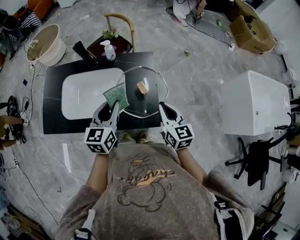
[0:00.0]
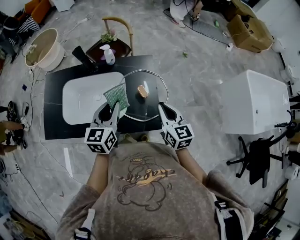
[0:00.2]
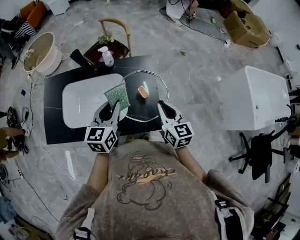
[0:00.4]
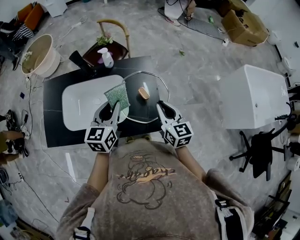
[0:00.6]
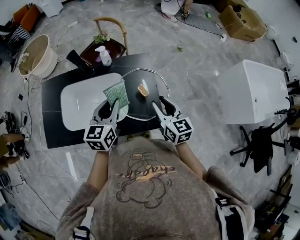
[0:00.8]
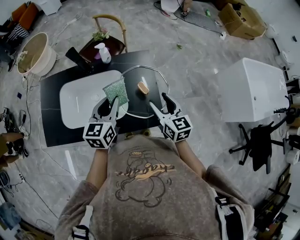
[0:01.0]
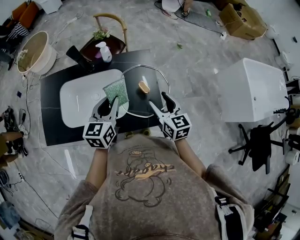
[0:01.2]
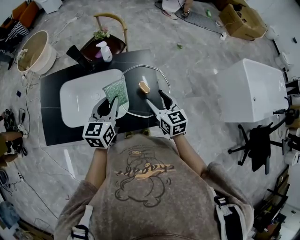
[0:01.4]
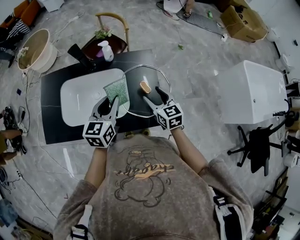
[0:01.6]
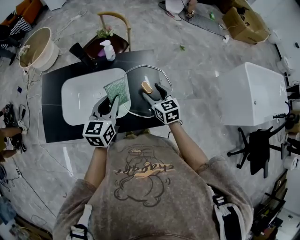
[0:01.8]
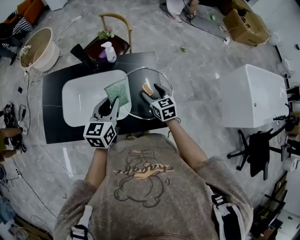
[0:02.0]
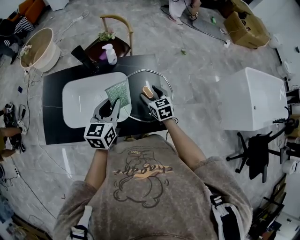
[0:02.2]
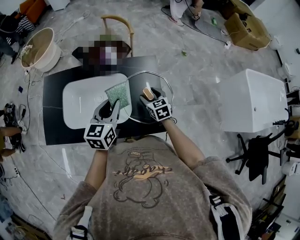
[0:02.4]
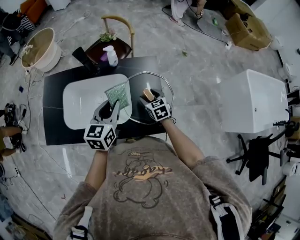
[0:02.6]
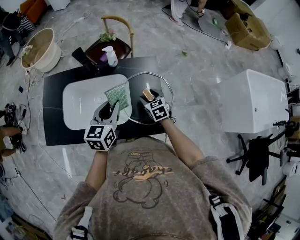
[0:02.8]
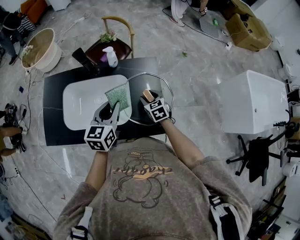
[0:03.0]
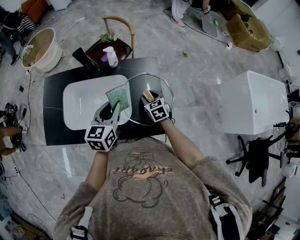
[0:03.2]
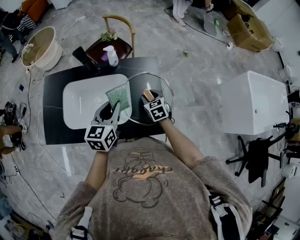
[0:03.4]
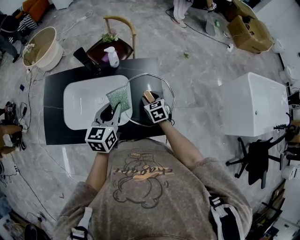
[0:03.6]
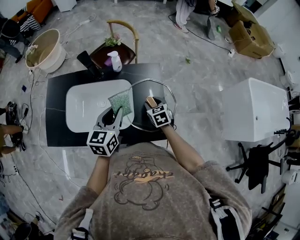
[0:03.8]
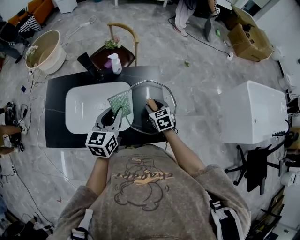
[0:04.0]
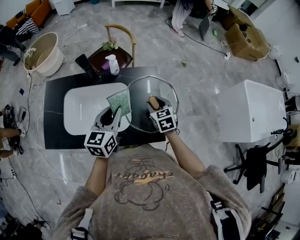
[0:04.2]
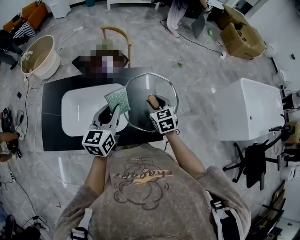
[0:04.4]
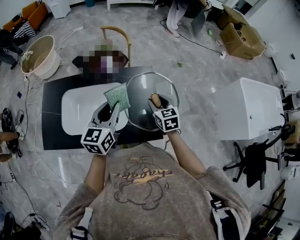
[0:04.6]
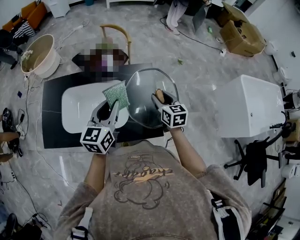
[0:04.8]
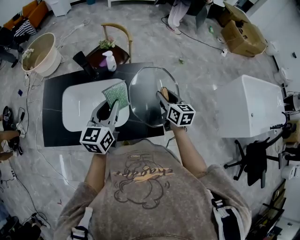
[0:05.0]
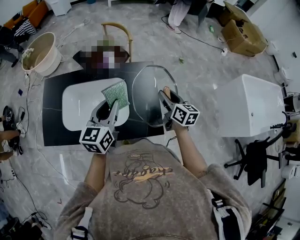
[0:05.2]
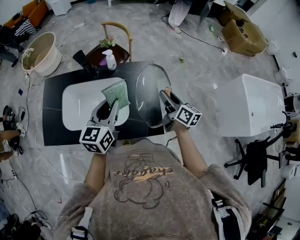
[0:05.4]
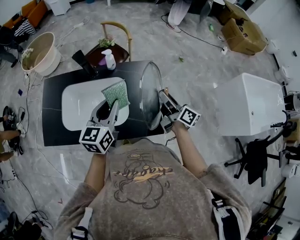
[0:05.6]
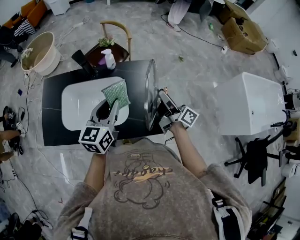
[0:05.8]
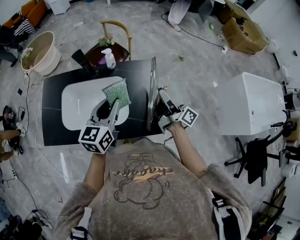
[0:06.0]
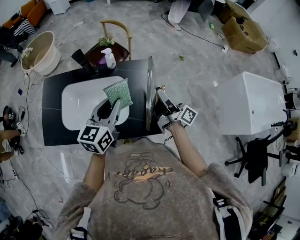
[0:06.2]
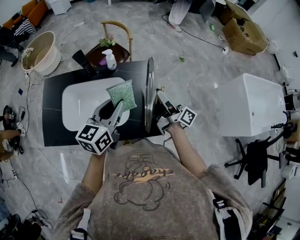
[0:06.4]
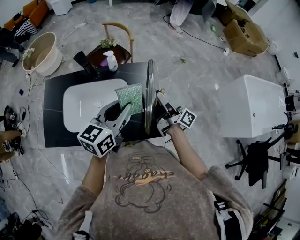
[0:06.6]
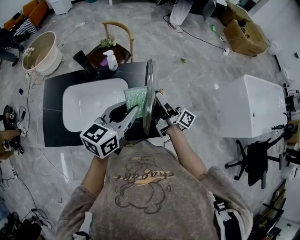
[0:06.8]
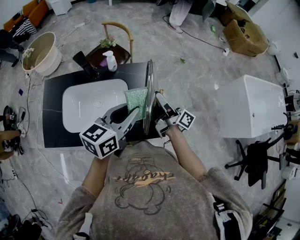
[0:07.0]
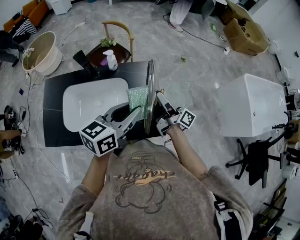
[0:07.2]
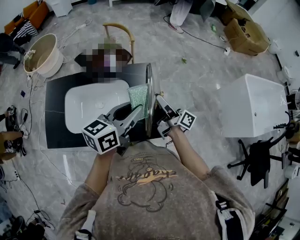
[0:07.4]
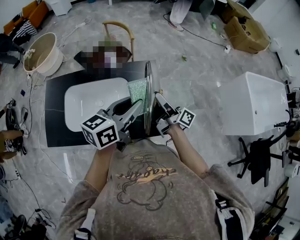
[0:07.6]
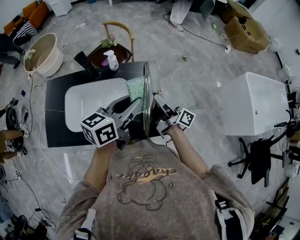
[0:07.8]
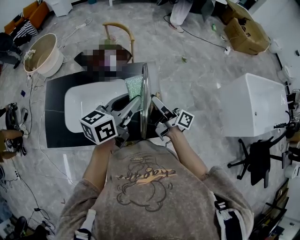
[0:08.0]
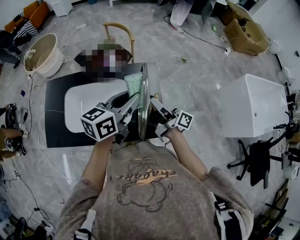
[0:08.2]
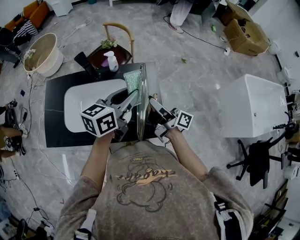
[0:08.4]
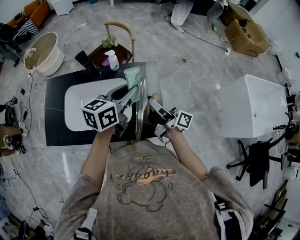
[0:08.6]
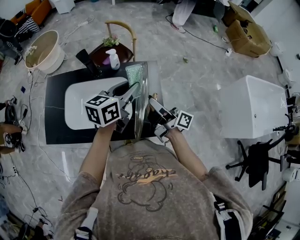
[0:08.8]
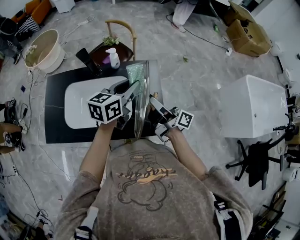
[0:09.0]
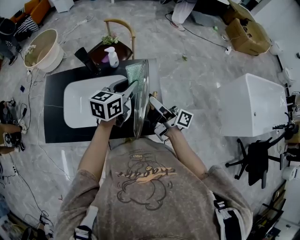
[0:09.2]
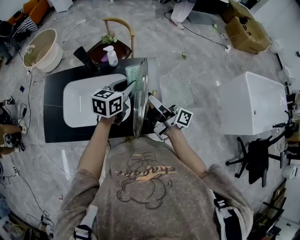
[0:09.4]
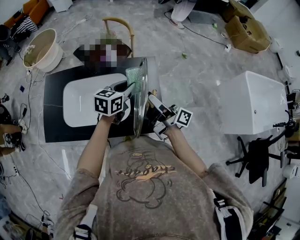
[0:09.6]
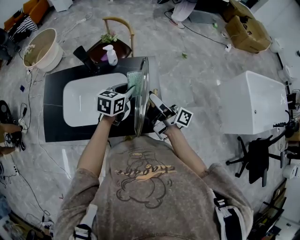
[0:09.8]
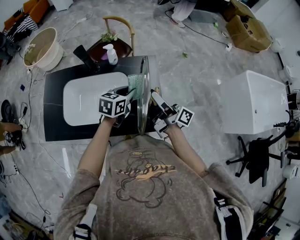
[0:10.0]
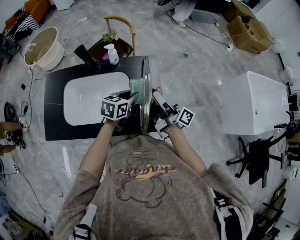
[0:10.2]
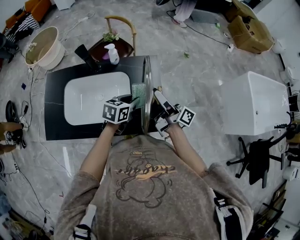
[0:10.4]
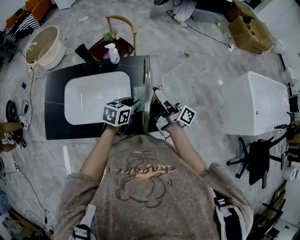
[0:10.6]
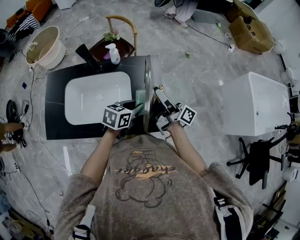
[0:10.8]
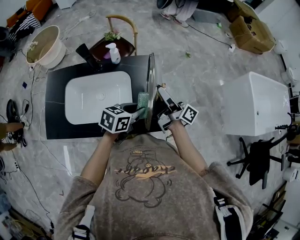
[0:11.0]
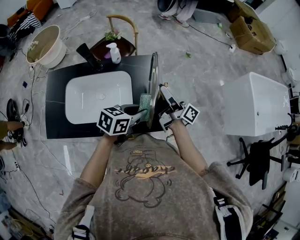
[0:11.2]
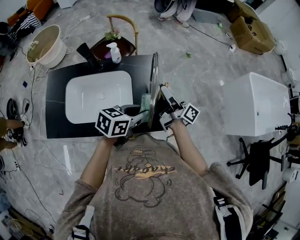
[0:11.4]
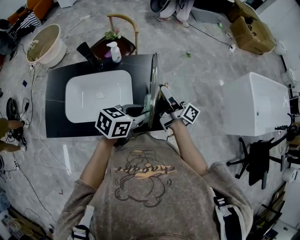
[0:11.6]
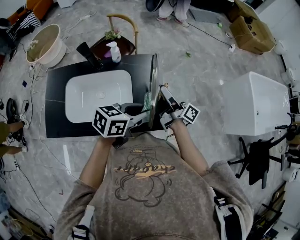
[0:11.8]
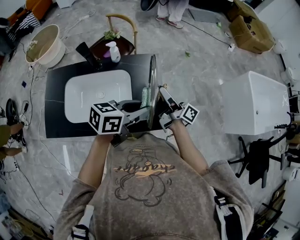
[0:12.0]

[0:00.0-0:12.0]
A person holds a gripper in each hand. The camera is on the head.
0:00.0 to 0:01.6: The right gripper shifts some 10 cm to the left, forward and downward, and opens.
0:01.6 to 0:03.0: The right gripper travels downward and forward by about 10 cm.
0:03.0 to 0:04.4: The right gripper is displaced upward by approximately 10 cm.
0:04.4 to 0:06.0: The right gripper is displaced upward by roughly 5 cm, and points its fingers about 50 degrees further upward.
0:06.0 to 0:07.6: The left gripper moves to the right, roughly 10 cm, and swivels roughly 30 degrees.
0:07.6 to 0:09.0: The right gripper changes place by roughly 5 cm, while the left gripper heads forward, covering roughly 5 cm.
0:09.0 to 0:10.4: The left gripper travels downward by roughly 15 cm, and swivels some 20 degrees.
0:10.4 to 0:12.0: The left gripper goes some 15 cm upward and backward, and rotates some 20 degrees.

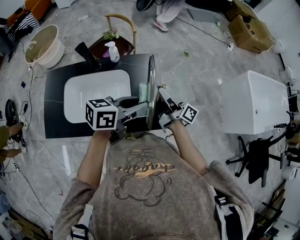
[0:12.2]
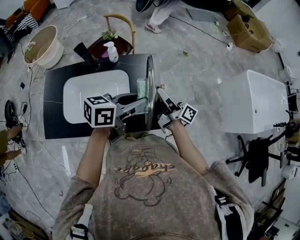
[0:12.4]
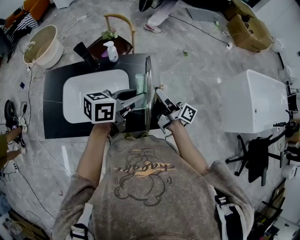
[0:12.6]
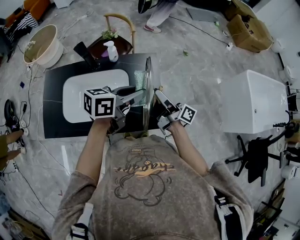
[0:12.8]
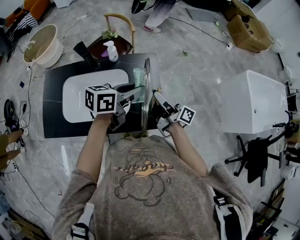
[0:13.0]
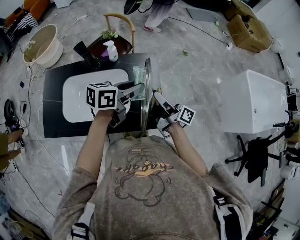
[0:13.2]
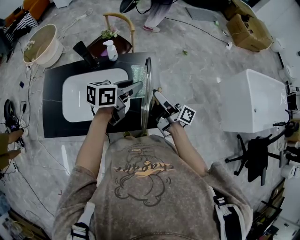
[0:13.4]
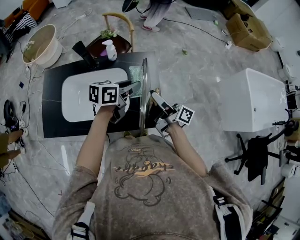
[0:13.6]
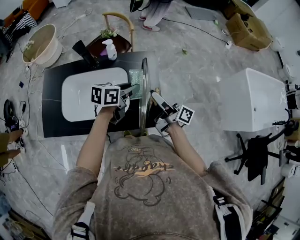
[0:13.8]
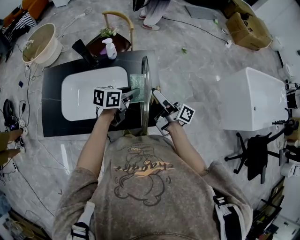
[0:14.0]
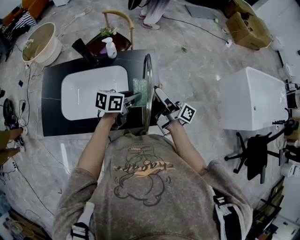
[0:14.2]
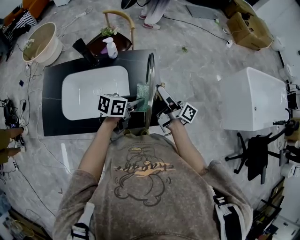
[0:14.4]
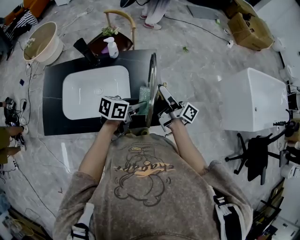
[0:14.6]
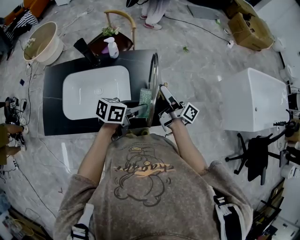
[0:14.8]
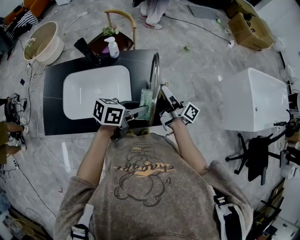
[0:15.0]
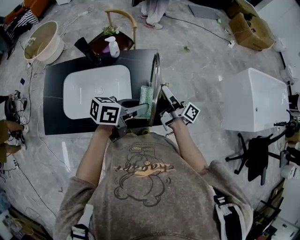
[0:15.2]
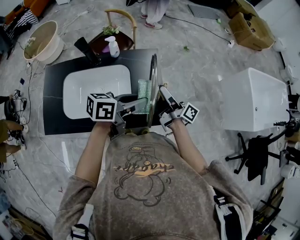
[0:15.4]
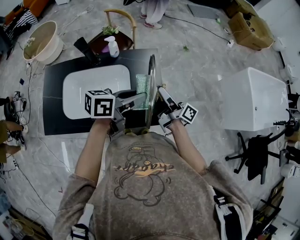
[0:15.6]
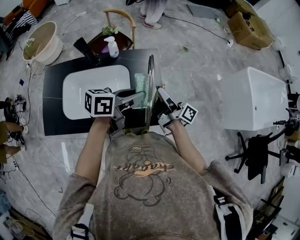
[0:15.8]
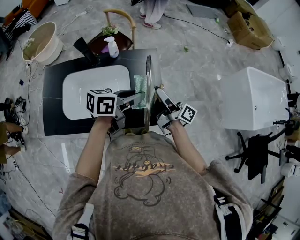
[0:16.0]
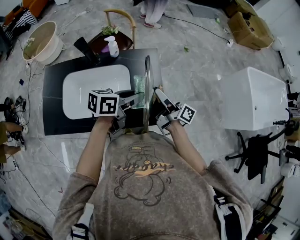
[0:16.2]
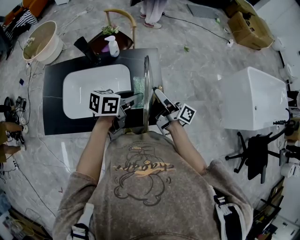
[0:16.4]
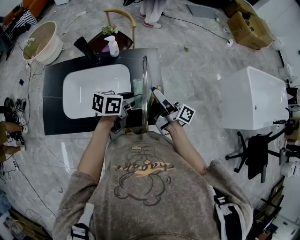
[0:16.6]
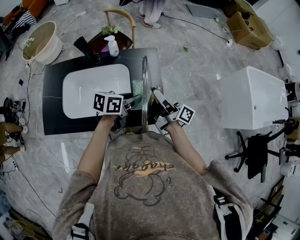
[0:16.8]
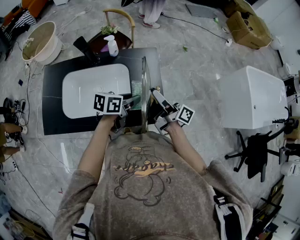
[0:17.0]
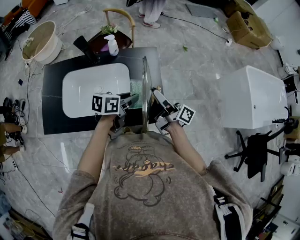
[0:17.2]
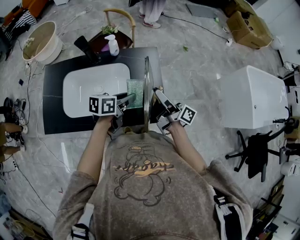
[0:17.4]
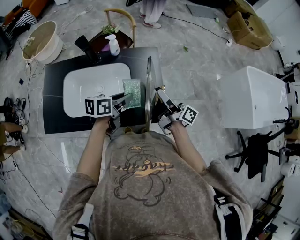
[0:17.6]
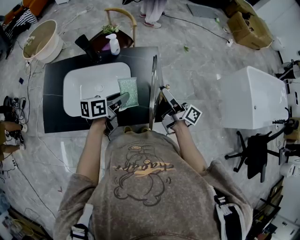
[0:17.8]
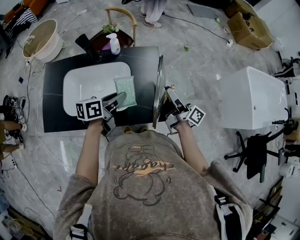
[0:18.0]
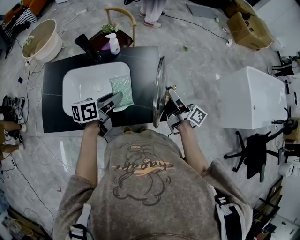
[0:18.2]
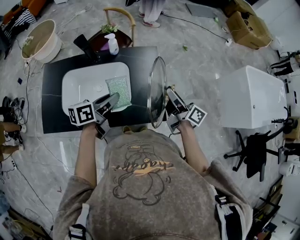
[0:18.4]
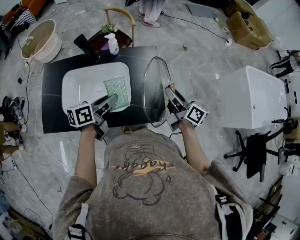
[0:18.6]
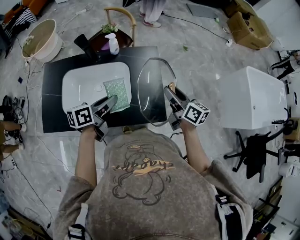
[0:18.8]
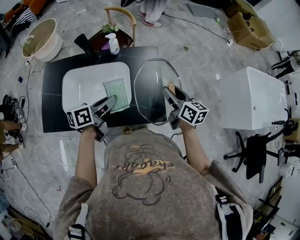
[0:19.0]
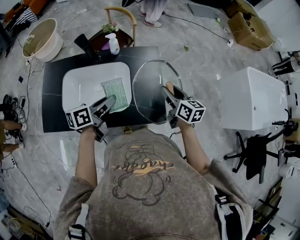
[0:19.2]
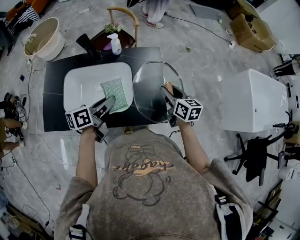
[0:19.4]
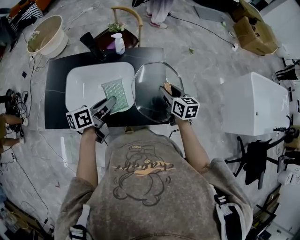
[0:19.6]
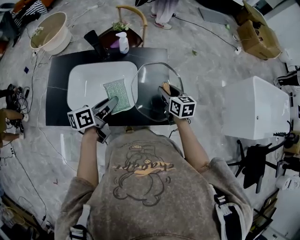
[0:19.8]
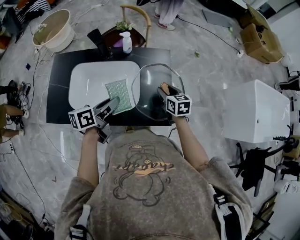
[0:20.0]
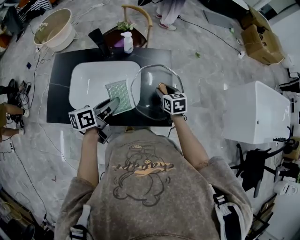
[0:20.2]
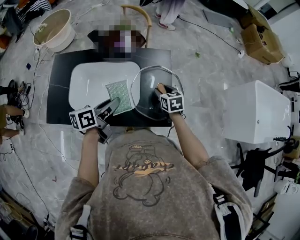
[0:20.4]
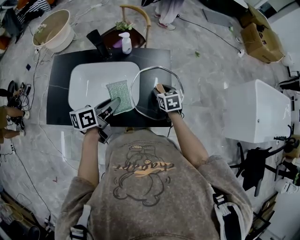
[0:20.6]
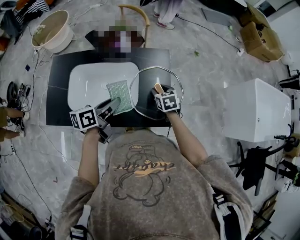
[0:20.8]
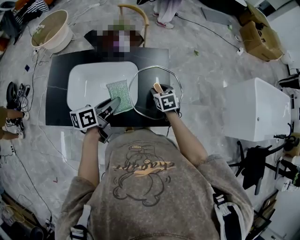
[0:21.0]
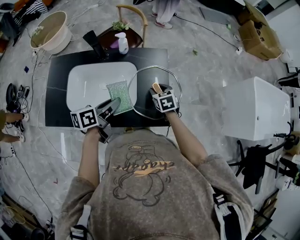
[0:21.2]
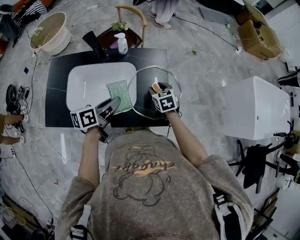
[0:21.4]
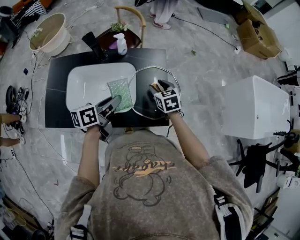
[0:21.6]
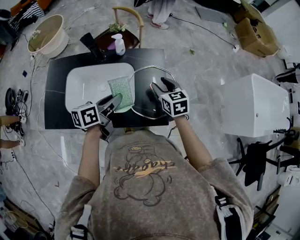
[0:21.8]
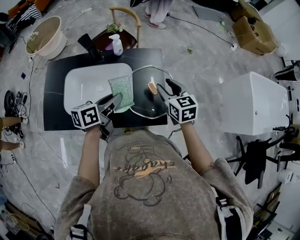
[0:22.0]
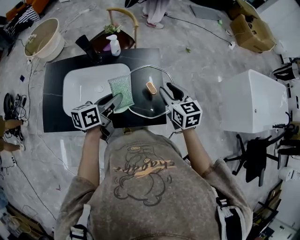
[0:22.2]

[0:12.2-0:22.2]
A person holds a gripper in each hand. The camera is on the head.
0:12.2 to 0:13.6: The left gripper heads forward and downward, covering roughly 10 cm.
0:13.6 to 0:15.0: The left gripper moves backward, some 10 cm.
0:16.4 to 0:18.0: The right gripper goes roughly 5 cm to the right, while the left gripper shifts roughly 5 cm to the left.
0:18.0 to 0:19.4: The right gripper tilts its fingers approximately 30 degrees downward.
0:19.4 to 0:20.8: The right gripper travels downward and to the left by roughly 15 cm, and turns by about 30 degrees.
0:20.8 to 0:22.2: The right gripper goes roughly 15 cm upward, and rotates some 20 degrees.

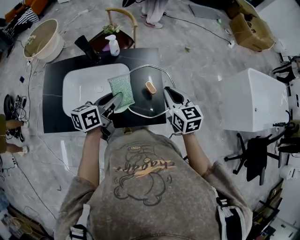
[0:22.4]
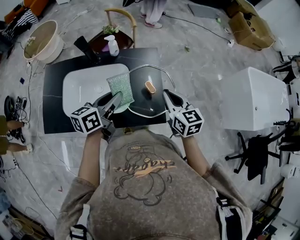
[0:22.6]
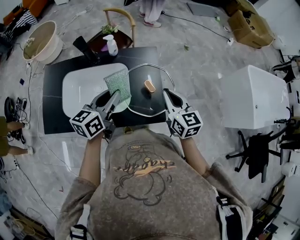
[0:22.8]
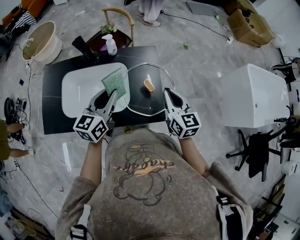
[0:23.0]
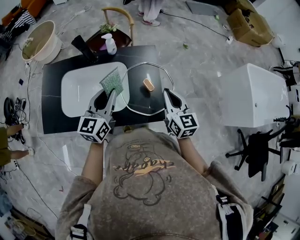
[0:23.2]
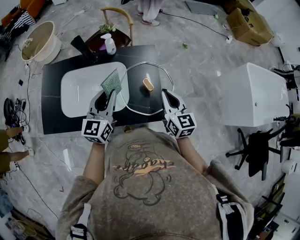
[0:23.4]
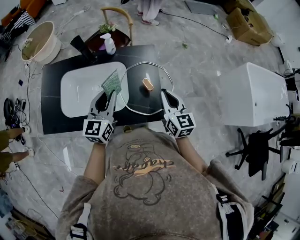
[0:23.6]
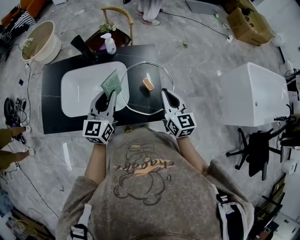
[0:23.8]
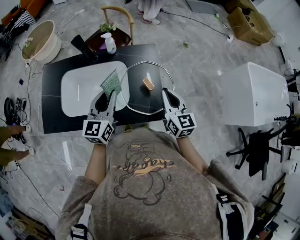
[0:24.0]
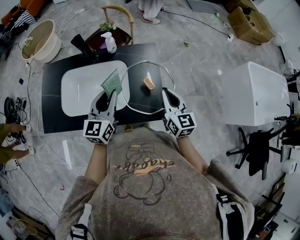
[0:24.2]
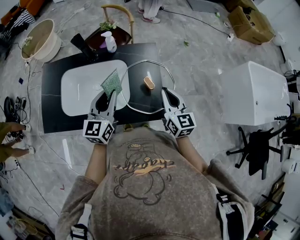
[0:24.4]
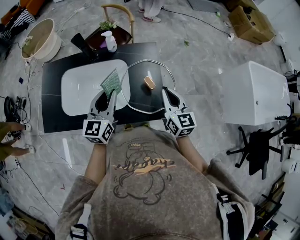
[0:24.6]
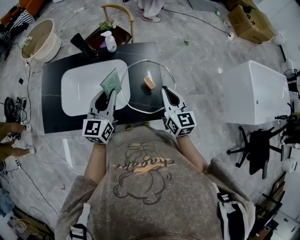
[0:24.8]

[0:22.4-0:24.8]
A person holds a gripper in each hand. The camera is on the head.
0:22.4 to 0:23.6: The left gripper changes its angle by some 40 degrees.
0:23.6 to 0:24.8: Both grippers stay about where they are.
